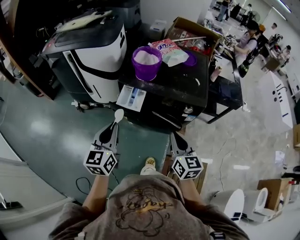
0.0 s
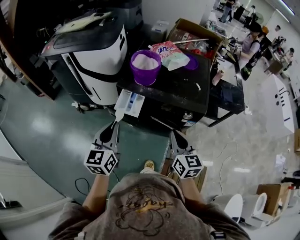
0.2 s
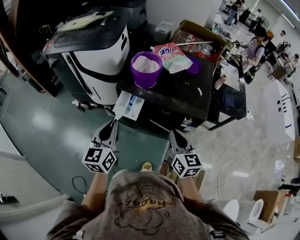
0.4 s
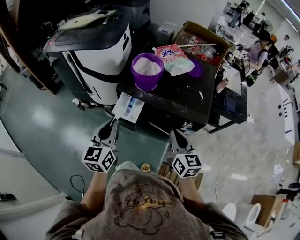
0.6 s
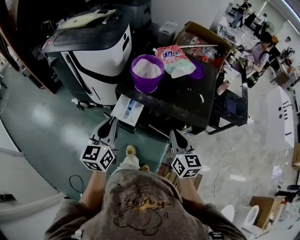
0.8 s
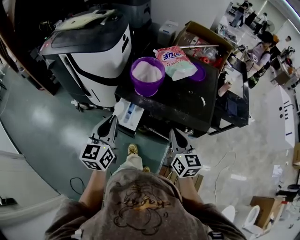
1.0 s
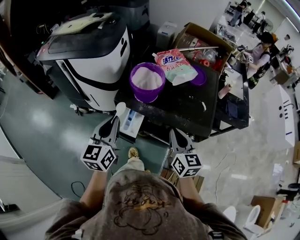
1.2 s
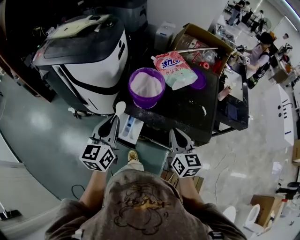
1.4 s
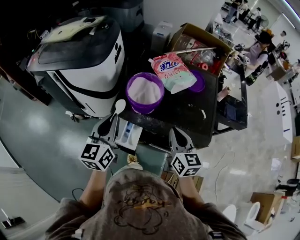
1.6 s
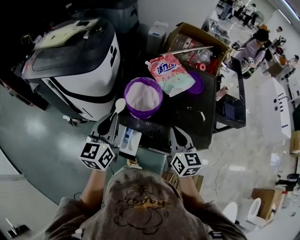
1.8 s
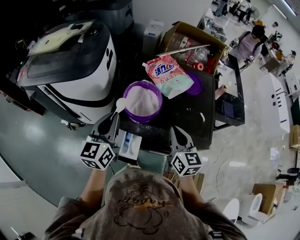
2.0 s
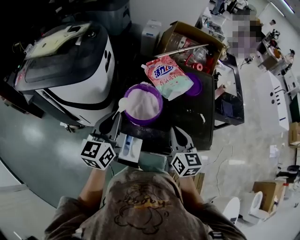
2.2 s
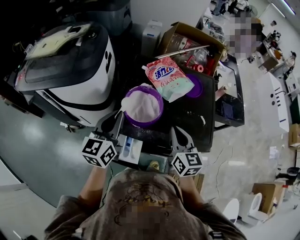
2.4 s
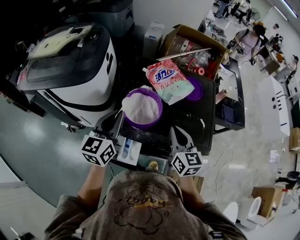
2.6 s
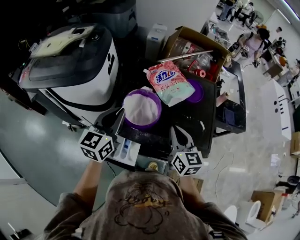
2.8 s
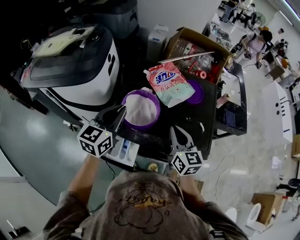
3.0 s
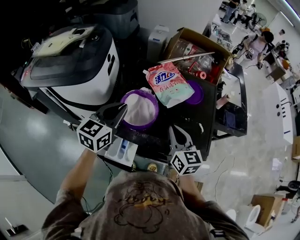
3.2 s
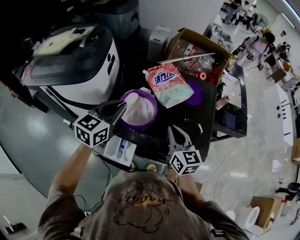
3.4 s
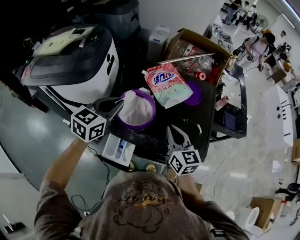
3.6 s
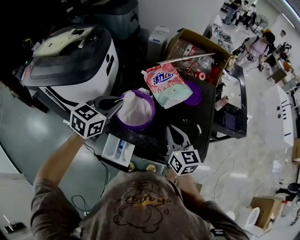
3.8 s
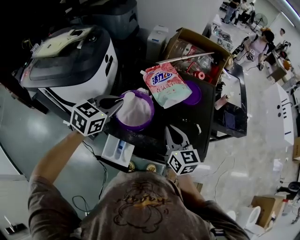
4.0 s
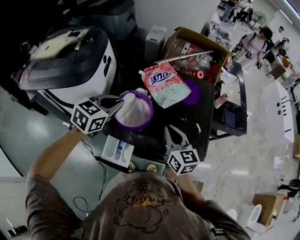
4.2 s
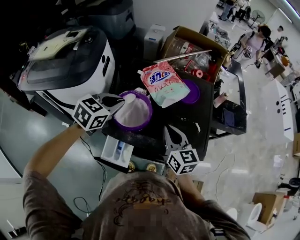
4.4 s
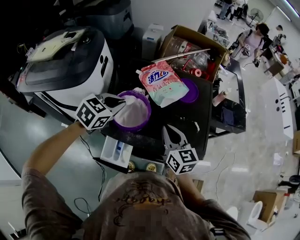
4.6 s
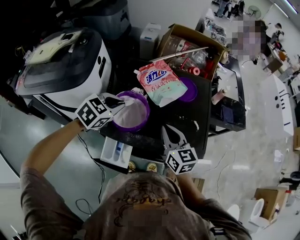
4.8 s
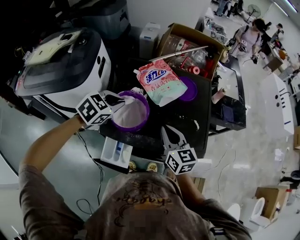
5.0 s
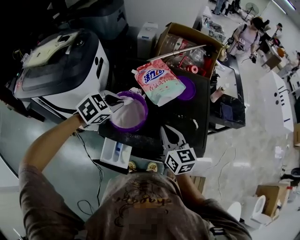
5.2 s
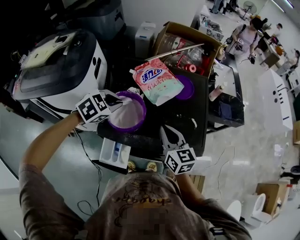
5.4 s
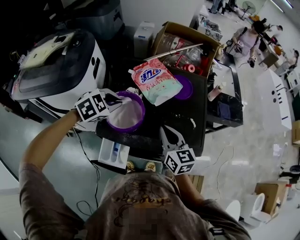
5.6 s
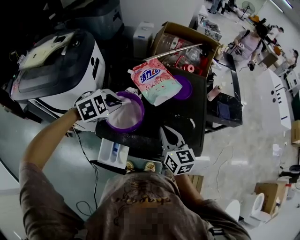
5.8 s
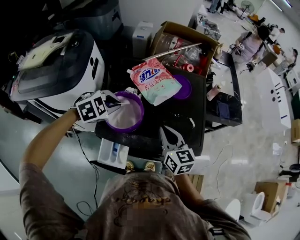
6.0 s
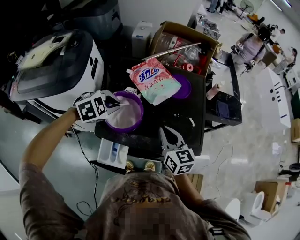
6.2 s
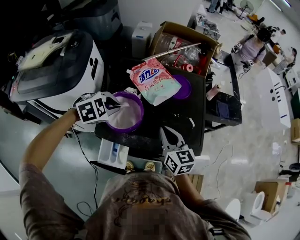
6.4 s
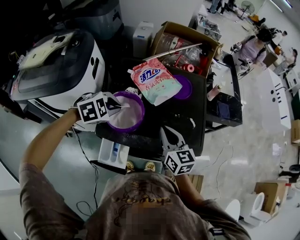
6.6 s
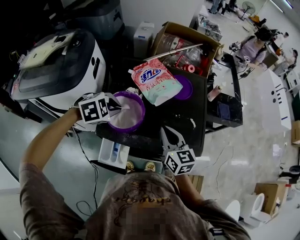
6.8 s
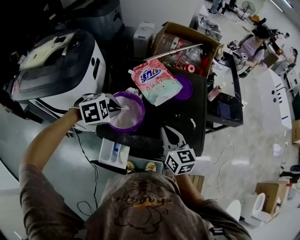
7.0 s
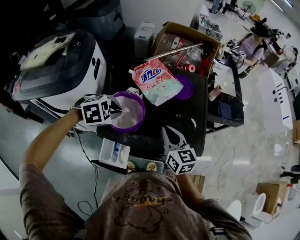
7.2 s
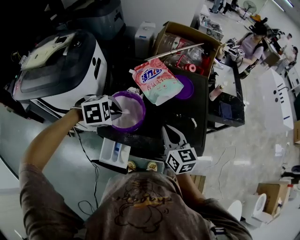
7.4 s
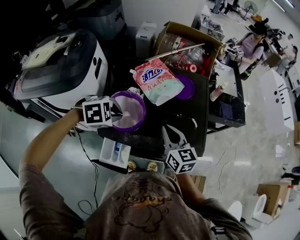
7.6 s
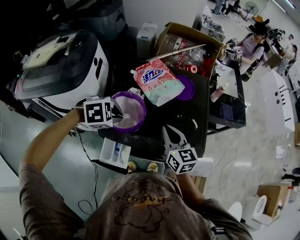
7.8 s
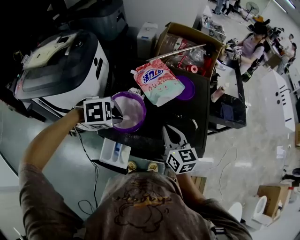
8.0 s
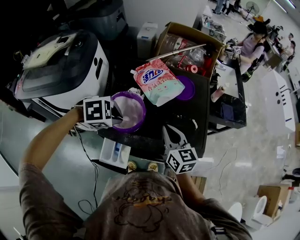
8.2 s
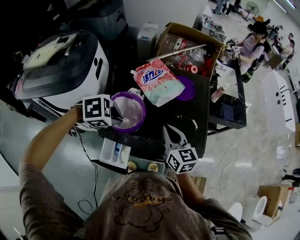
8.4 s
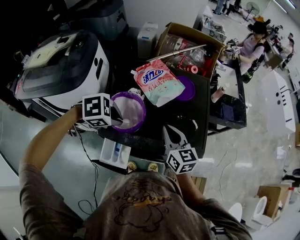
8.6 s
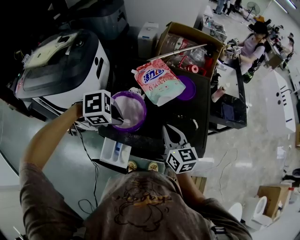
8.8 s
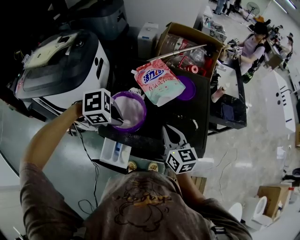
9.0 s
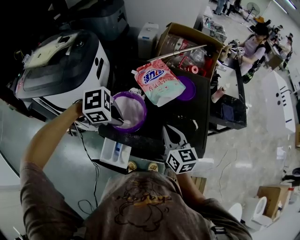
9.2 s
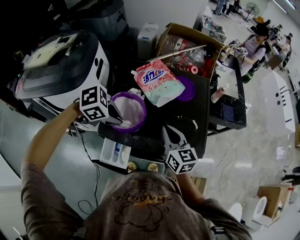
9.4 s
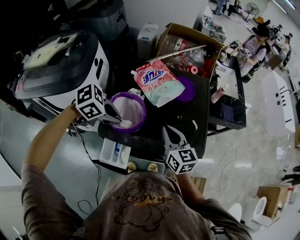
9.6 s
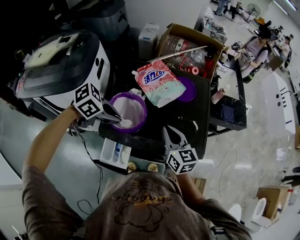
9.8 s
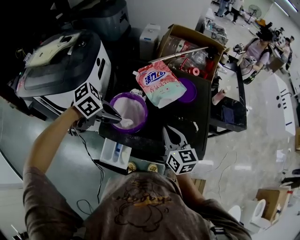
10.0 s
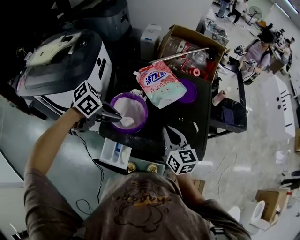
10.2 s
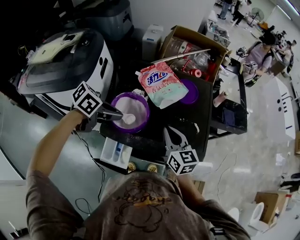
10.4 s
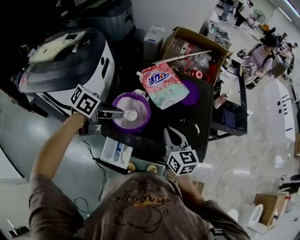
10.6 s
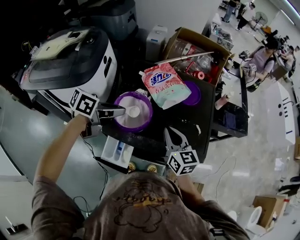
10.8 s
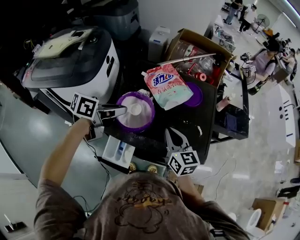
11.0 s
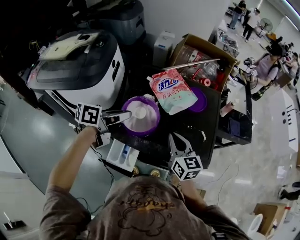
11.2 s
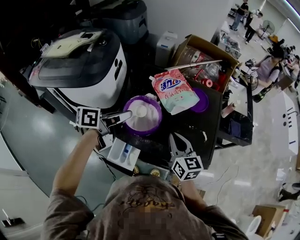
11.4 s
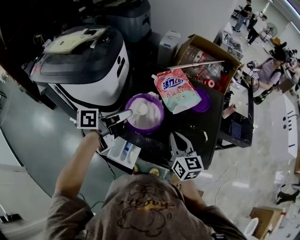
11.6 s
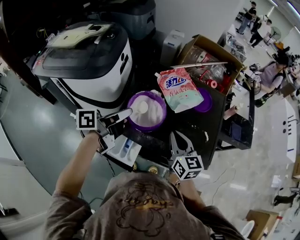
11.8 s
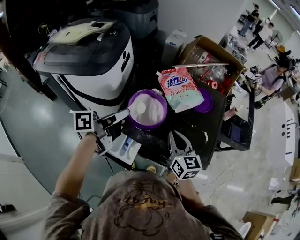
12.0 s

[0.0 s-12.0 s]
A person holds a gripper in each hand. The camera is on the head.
0.0 to 1.6 s: The grippers both shift forward by about 25 cm.
1.6 to 3.0 s: Both grippers move forward, approximately 10 cm.
3.0 to 4.4 s: The left gripper shifts by about 5 cm, and changes its angle by about 30 degrees.
4.4 to 6.0 s: The left gripper is displaced downward by about 5 cm, and rotates roughly 40 degrees.
6.0 to 7.6 s: The left gripper moves some 5 cm.
7.6 to 9.0 s: The grippers stay close to where they were, moving slightly.
9.0 to 10.4 s: The left gripper rotates some 40 degrees.
10.4 to 12.0 s: The left gripper changes place by about 10 cm, and tilts its fingers about 30 degrees upward.

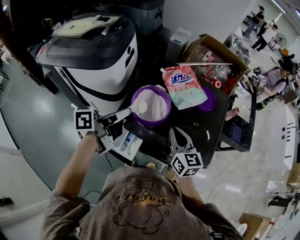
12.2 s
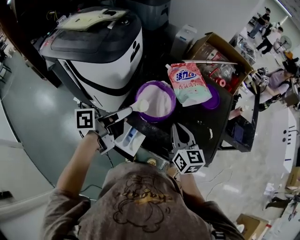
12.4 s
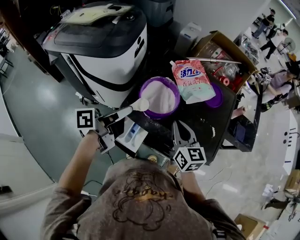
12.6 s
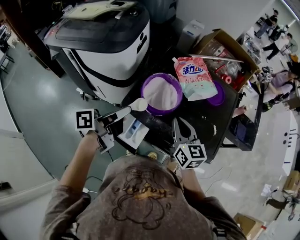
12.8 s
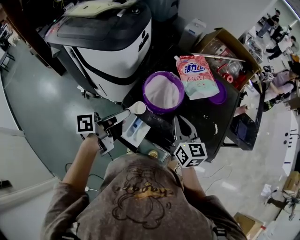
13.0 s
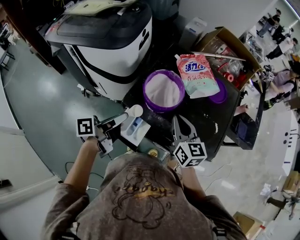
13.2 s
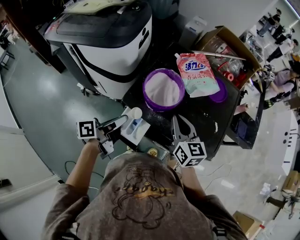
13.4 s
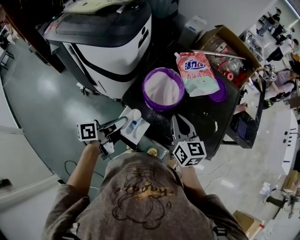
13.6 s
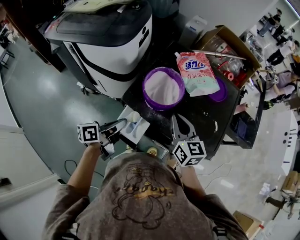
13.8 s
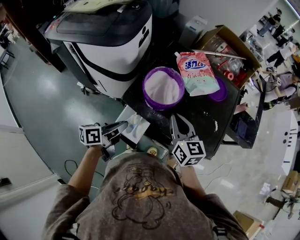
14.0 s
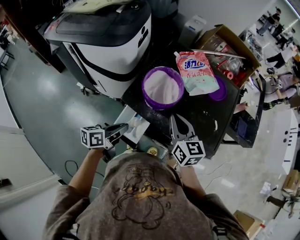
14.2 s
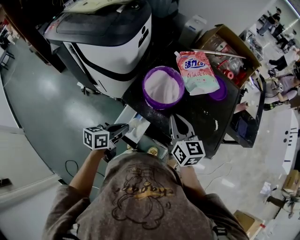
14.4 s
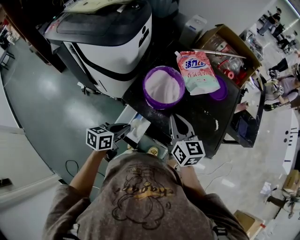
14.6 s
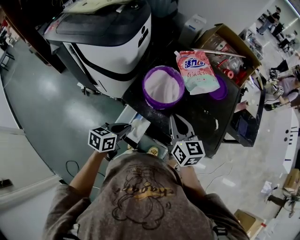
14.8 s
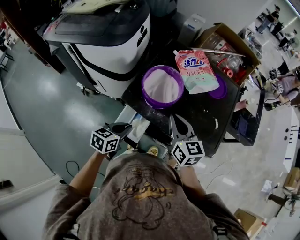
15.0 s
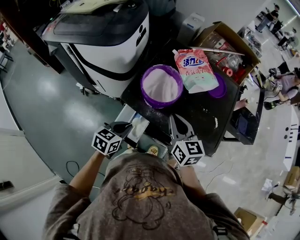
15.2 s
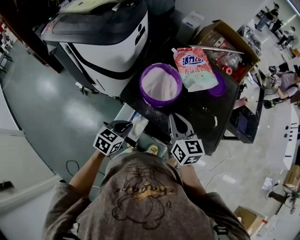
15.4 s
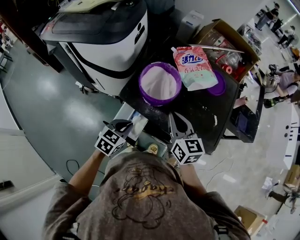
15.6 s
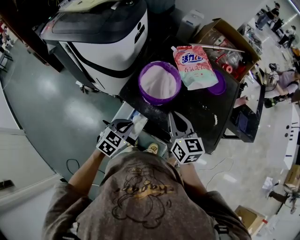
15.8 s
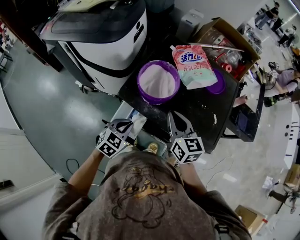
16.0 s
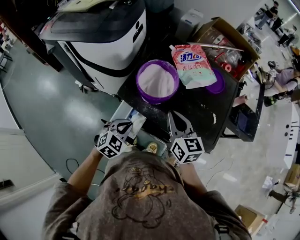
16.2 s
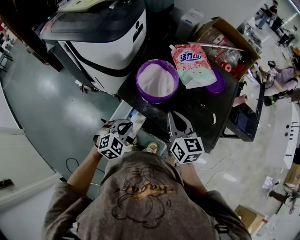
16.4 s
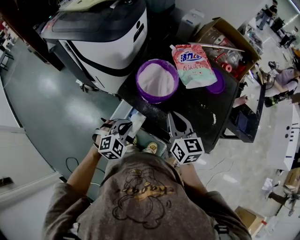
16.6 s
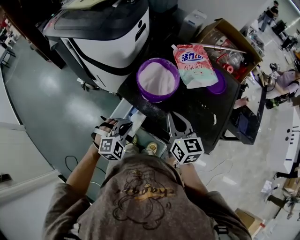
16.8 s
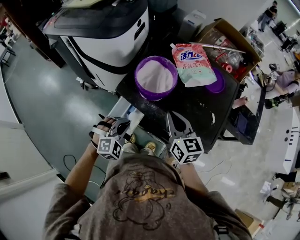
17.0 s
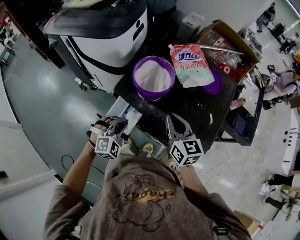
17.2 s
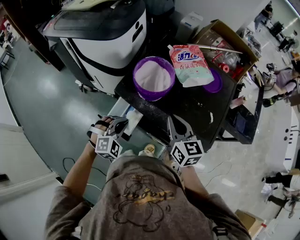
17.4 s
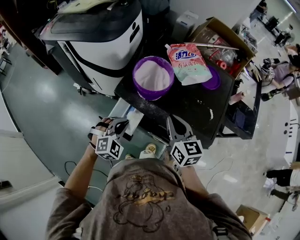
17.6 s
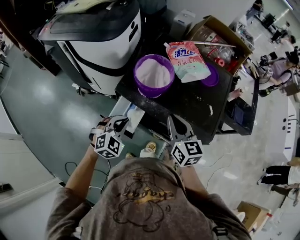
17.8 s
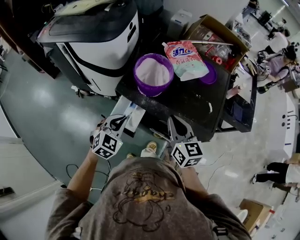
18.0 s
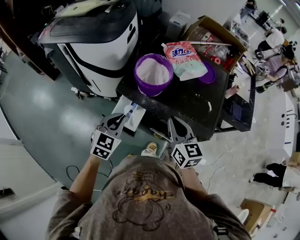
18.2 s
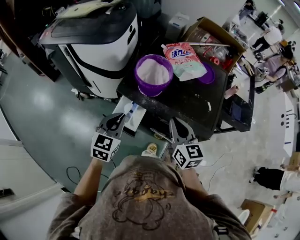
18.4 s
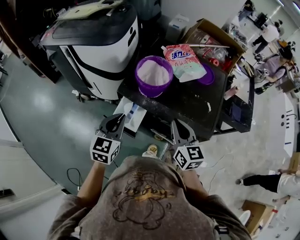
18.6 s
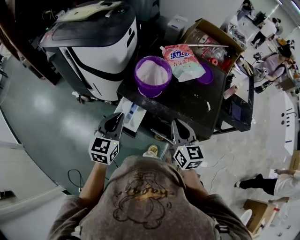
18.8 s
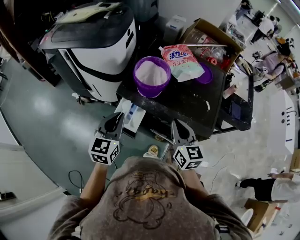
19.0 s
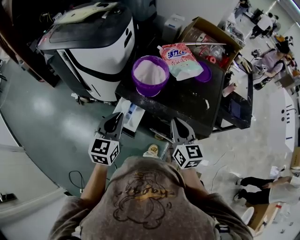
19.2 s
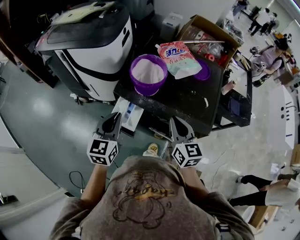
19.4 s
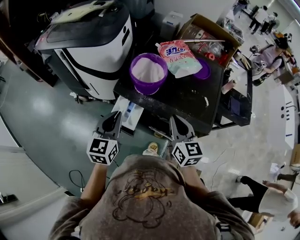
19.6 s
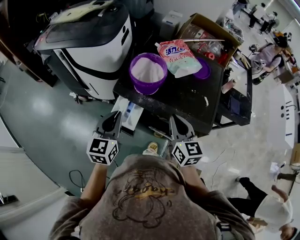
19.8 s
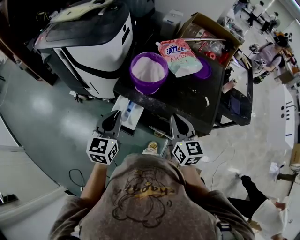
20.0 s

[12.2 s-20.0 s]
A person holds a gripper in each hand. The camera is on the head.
12.2 to 13.8 s: The left gripper shifts some 15 cm downward and backward.
13.8 to 15.4 s: The left gripper travels downward by about 5 cm, and rotates around the line of its fingers by about 40 degrees, clockwise from behind.
15.4 to 16.8 s: The left gripper rotates around the line of its fingers by approximately 50 degrees, clockwise from behind.
16.8 to 18.4 s: The left gripper moves upward, about 10 cm, and rolls counterclockwise, seen from behind, by approximately 40 degrees, while the right gripper moves backward, approximately 10 cm.
18.4 to 20.0 s: The grippers stay close to where they were, moving slightly.

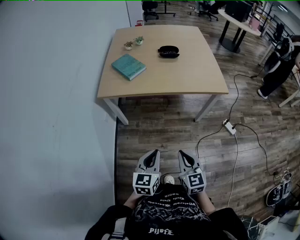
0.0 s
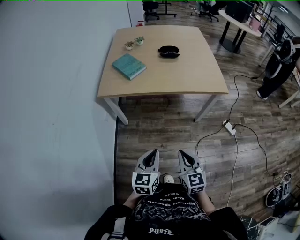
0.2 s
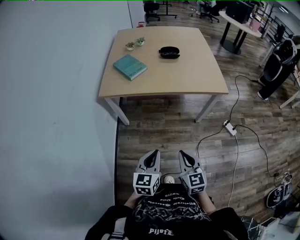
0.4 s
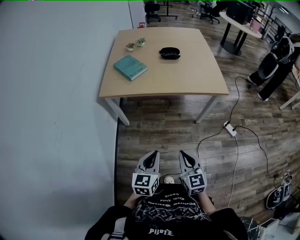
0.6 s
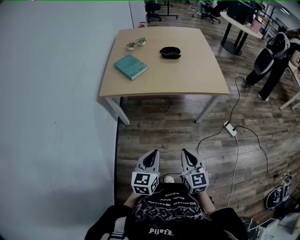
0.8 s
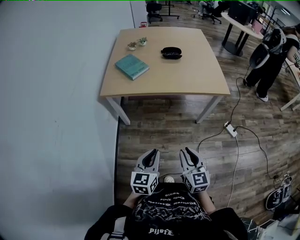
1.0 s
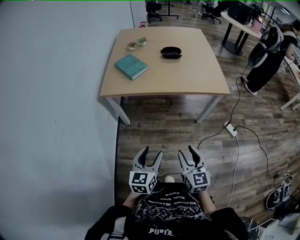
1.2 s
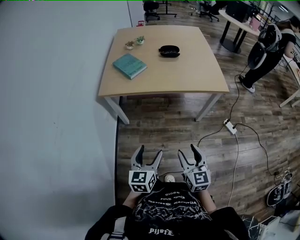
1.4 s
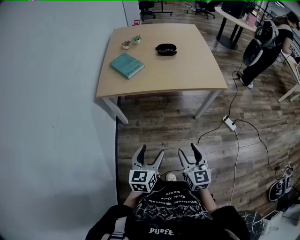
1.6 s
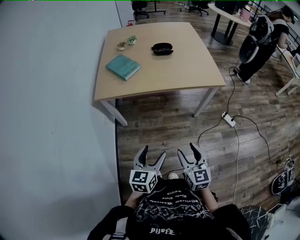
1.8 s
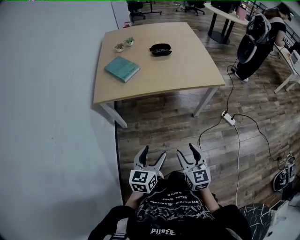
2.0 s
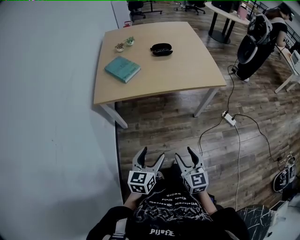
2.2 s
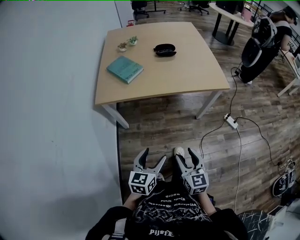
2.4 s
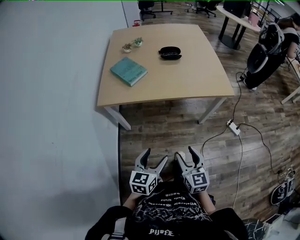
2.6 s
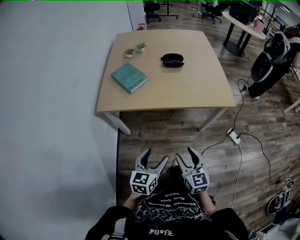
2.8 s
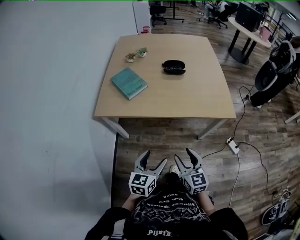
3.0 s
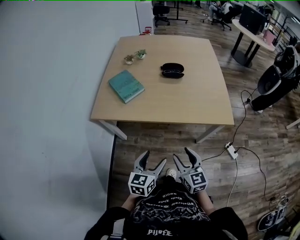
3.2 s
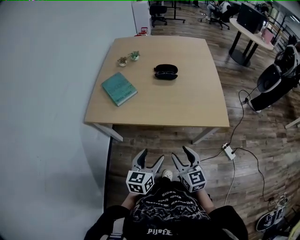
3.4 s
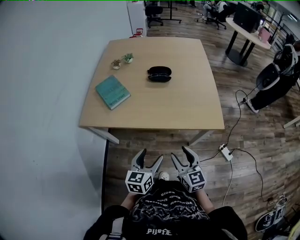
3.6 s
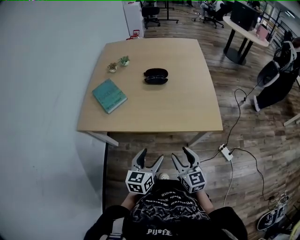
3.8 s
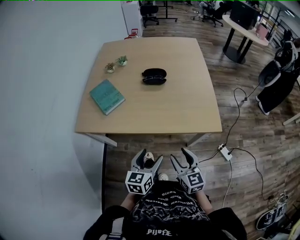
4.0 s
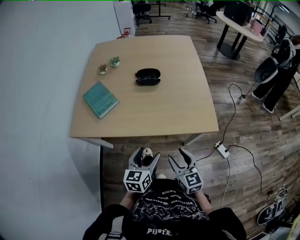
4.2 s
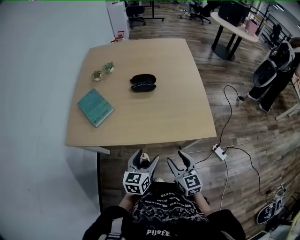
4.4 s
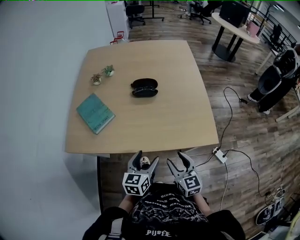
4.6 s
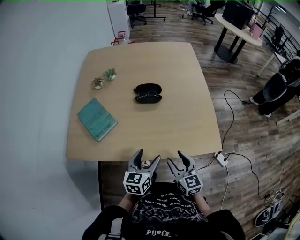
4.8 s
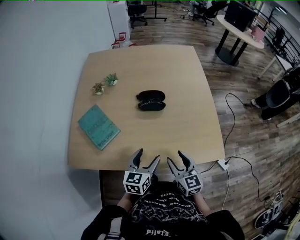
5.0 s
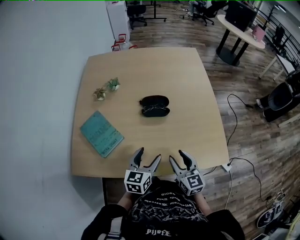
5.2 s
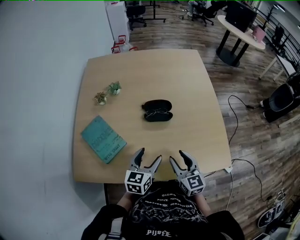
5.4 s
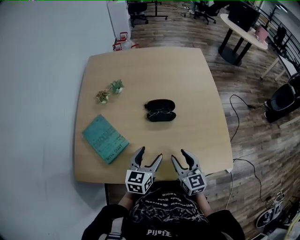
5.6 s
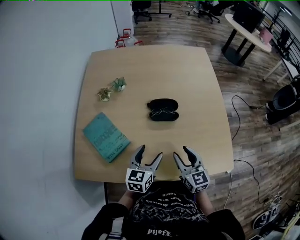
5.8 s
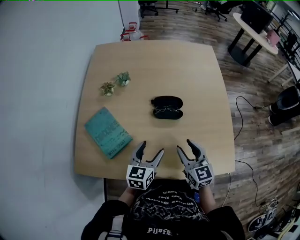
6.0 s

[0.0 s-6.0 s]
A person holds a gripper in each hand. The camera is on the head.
0.0 to 1.6 s: The left gripper opens its fingers; the right gripper opens up.
1.6 to 3.0 s: The grippers both shift forward by roughly 15 cm.
3.0 to 4.4 s: Both grippers travel together forward and to the right, roughly 20 cm.
4.4 to 6.0 s: The right gripper goes approximately 30 cm forward; the left gripper is displaced forward and to the left by some 30 cm.
